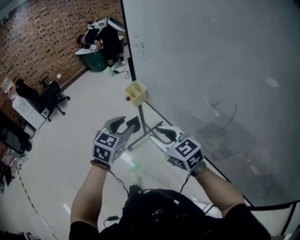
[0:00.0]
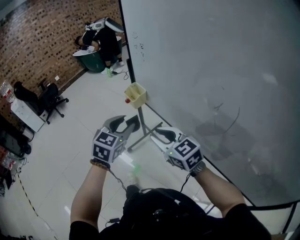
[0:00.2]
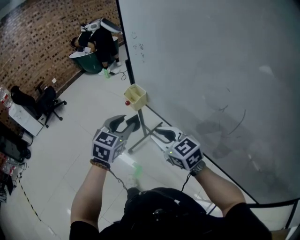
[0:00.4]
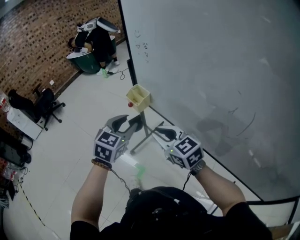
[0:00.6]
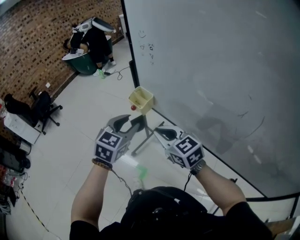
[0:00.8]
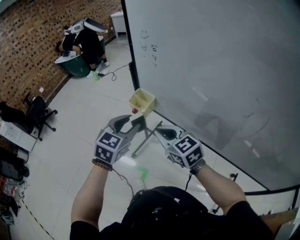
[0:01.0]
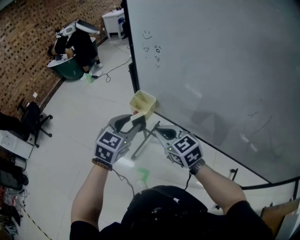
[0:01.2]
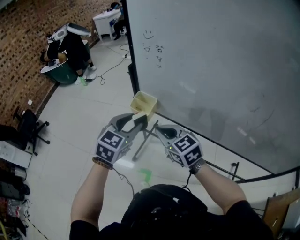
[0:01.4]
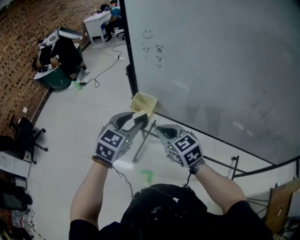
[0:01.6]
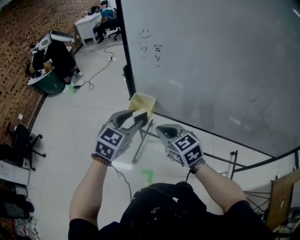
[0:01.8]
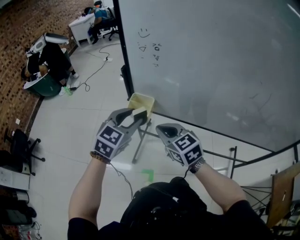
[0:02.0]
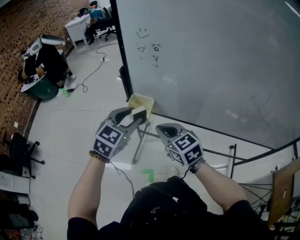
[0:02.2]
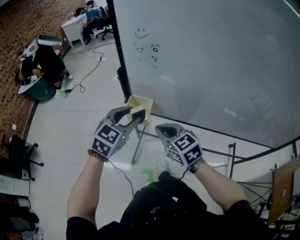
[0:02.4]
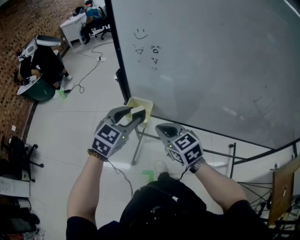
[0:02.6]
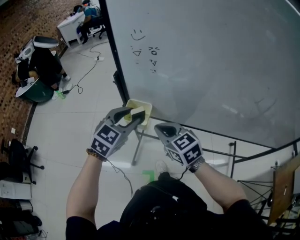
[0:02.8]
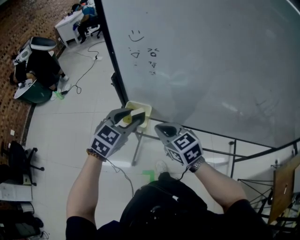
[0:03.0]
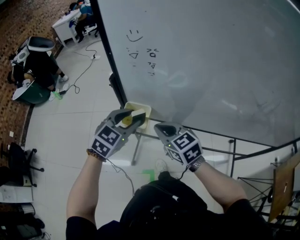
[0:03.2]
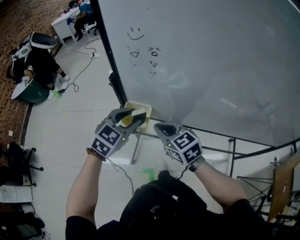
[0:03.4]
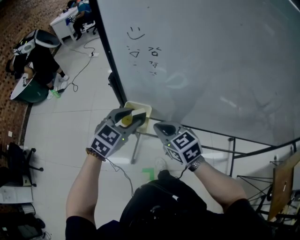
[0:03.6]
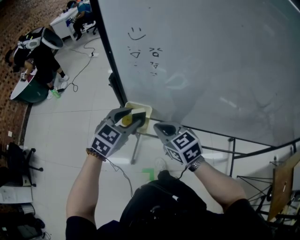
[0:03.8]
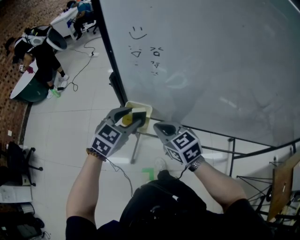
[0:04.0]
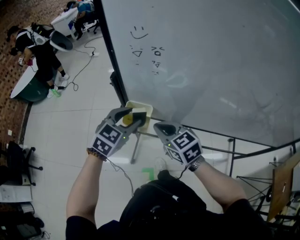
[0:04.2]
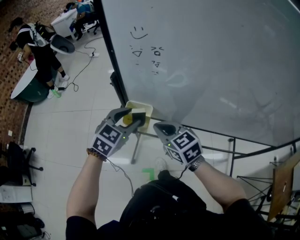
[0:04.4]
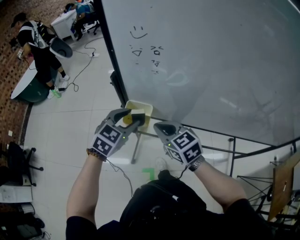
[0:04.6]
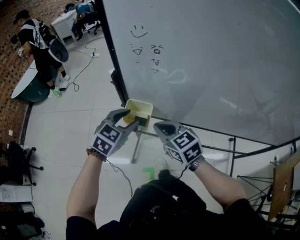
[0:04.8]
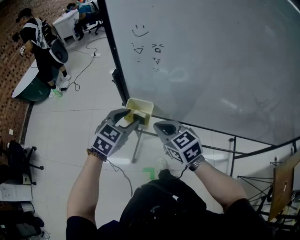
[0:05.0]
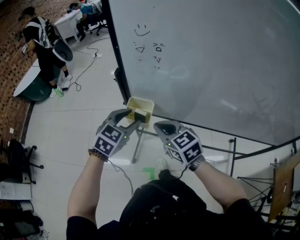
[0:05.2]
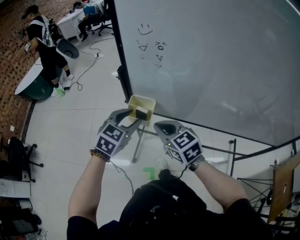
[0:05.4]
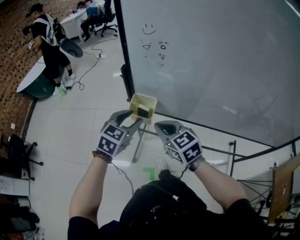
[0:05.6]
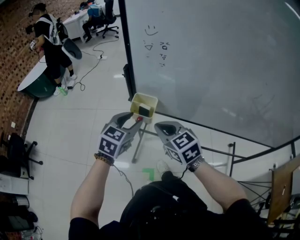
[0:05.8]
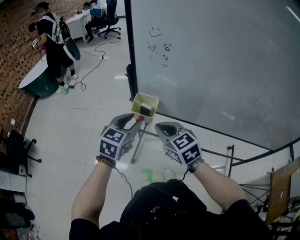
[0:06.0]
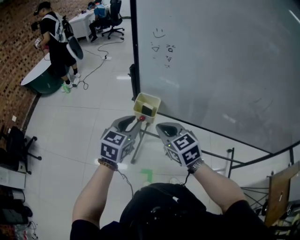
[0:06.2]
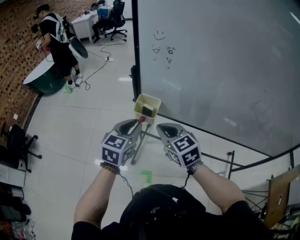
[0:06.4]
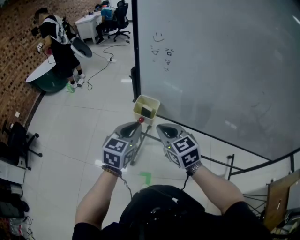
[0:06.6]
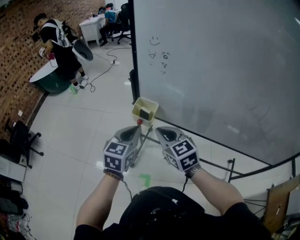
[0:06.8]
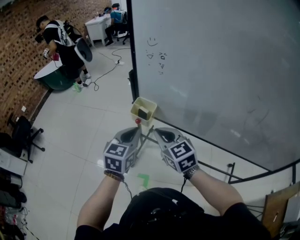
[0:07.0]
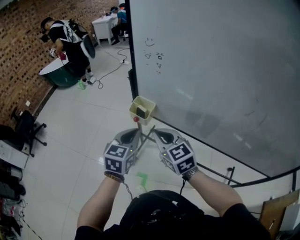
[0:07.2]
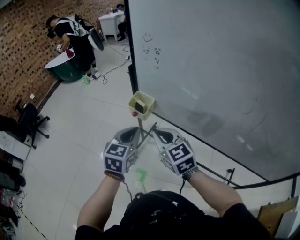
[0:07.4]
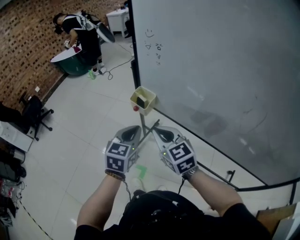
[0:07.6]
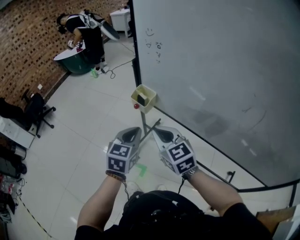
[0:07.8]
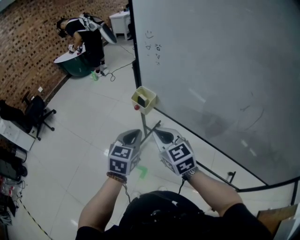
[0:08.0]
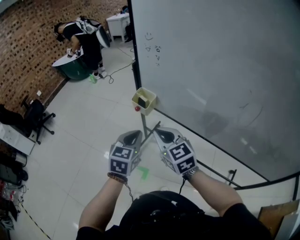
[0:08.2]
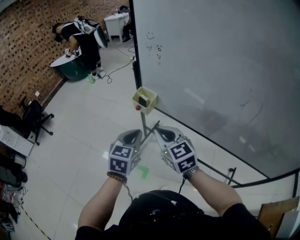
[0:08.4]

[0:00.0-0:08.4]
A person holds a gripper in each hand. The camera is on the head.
0:00.0 to 0:01.4: The left gripper ends up some 20 cm from where it was, and rotates approximately 30 degrees, while the right gripper moves approximately 20 cm, turns by some 30 degrees, and closes its fingers.
0:01.4 to 0:02.8: Both grippers travel together forward, about 10 cm. The left gripper changes its angle by roughly 20 degrees.
0:02.8 to 0:04.2: The left gripper shifts by approximately 5 cm.
0:04.2 to 0:05.6: Both grippers travel together backward, some 5 cm.
0:05.6 to 0:07.0: The right gripper changes place by some 5 cm. The left gripper shifts roughly 10 cm backward, swivels roughly 30 degrees, and closes its fingers.
0:07.0 to 0:08.4: The two grippers go roughly 10 cm backward.

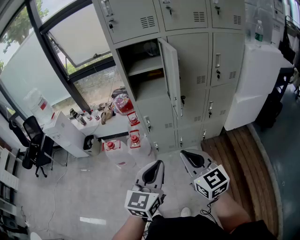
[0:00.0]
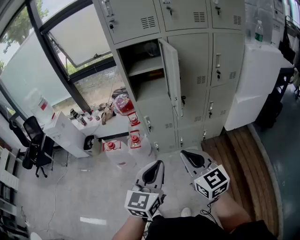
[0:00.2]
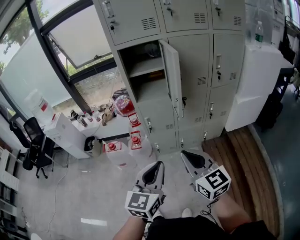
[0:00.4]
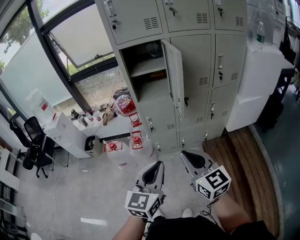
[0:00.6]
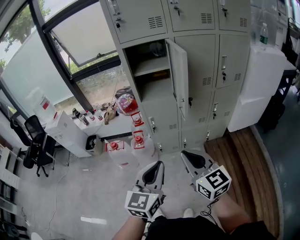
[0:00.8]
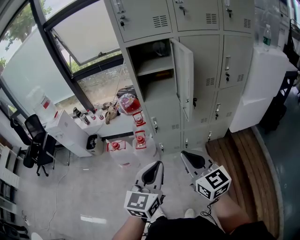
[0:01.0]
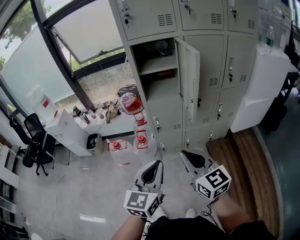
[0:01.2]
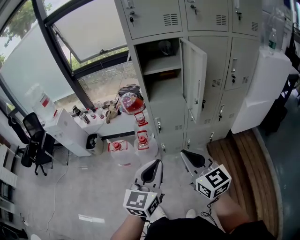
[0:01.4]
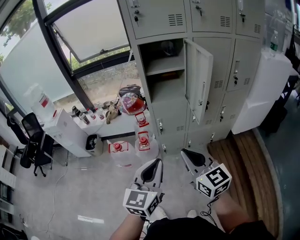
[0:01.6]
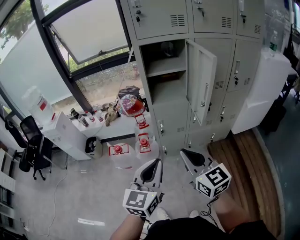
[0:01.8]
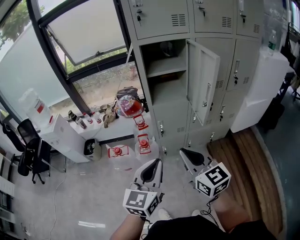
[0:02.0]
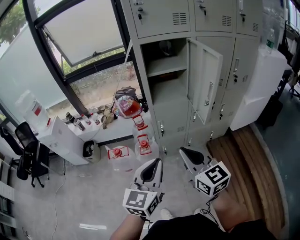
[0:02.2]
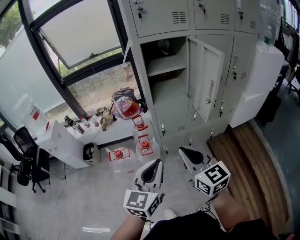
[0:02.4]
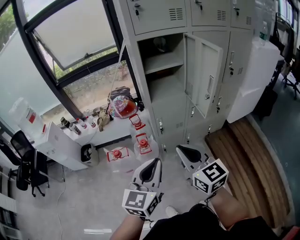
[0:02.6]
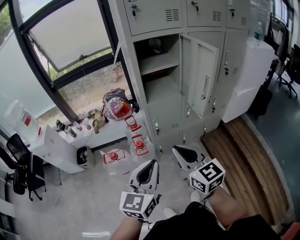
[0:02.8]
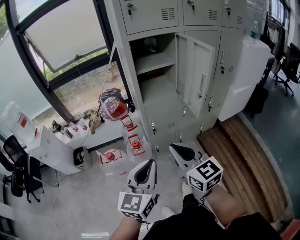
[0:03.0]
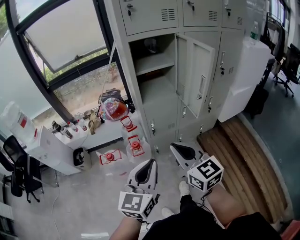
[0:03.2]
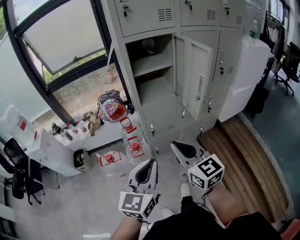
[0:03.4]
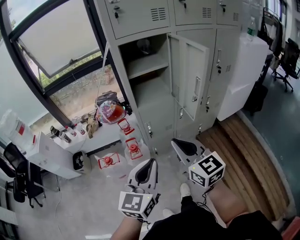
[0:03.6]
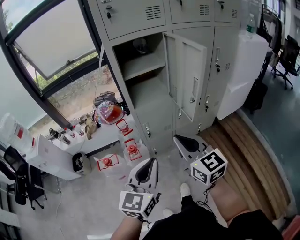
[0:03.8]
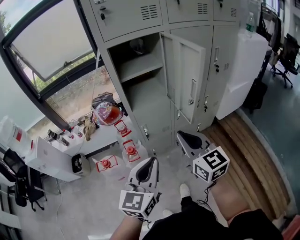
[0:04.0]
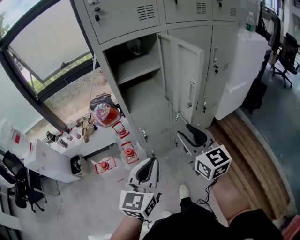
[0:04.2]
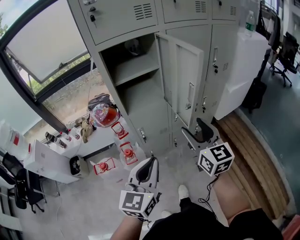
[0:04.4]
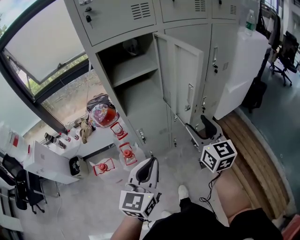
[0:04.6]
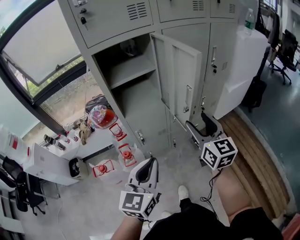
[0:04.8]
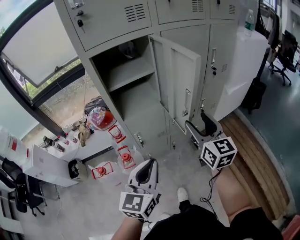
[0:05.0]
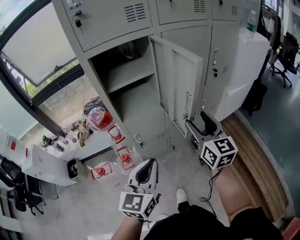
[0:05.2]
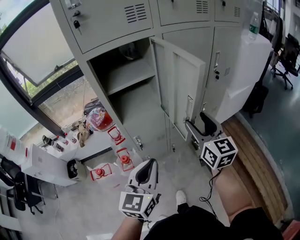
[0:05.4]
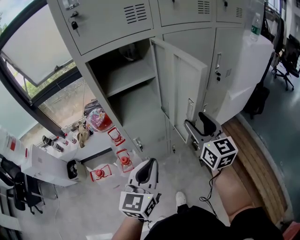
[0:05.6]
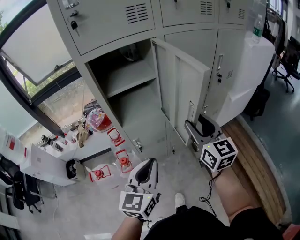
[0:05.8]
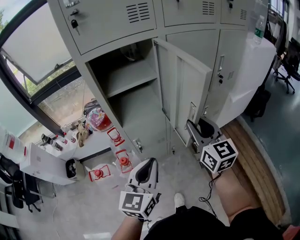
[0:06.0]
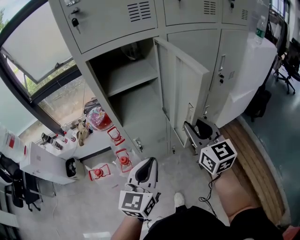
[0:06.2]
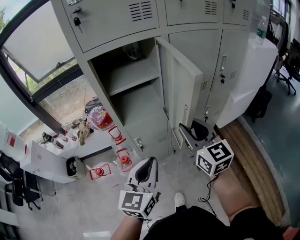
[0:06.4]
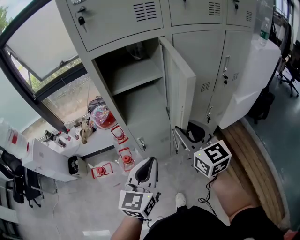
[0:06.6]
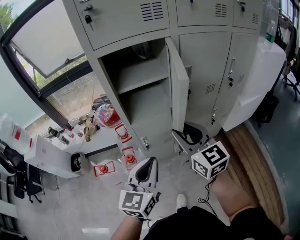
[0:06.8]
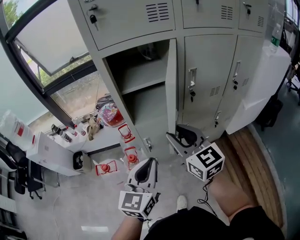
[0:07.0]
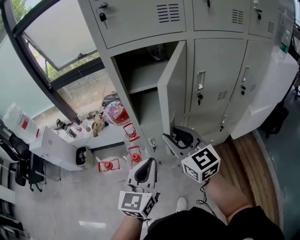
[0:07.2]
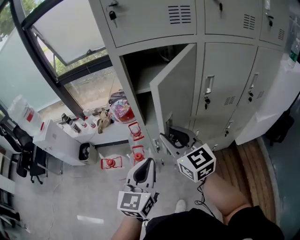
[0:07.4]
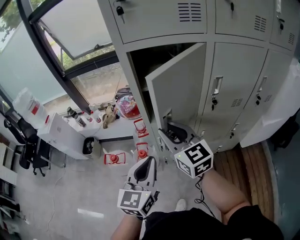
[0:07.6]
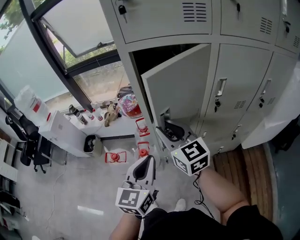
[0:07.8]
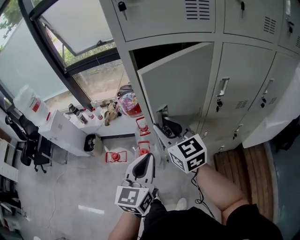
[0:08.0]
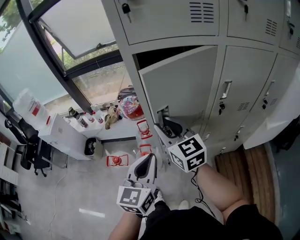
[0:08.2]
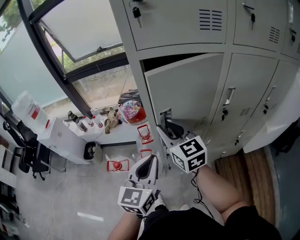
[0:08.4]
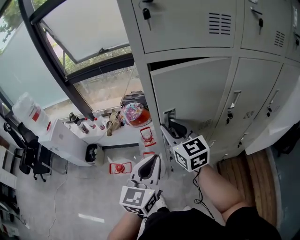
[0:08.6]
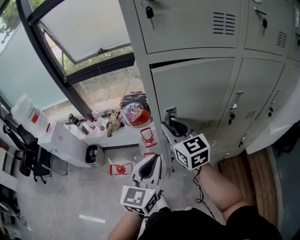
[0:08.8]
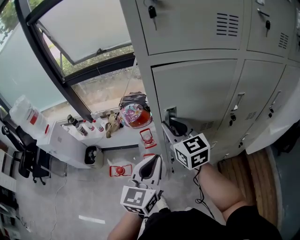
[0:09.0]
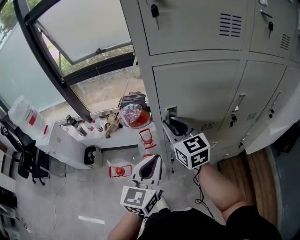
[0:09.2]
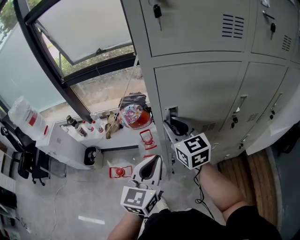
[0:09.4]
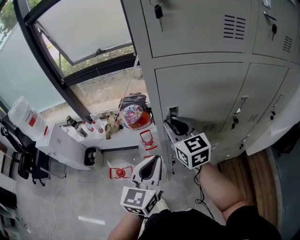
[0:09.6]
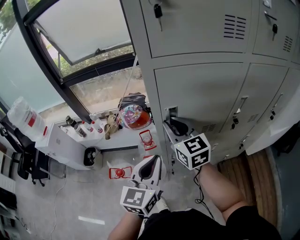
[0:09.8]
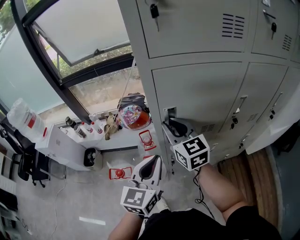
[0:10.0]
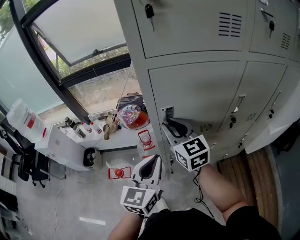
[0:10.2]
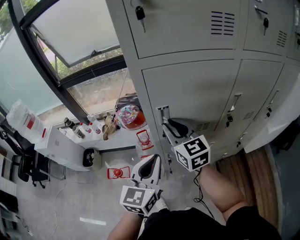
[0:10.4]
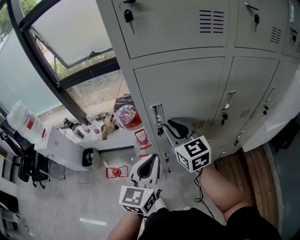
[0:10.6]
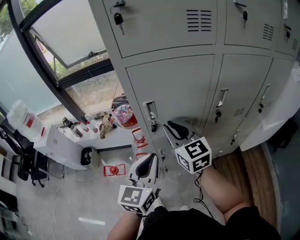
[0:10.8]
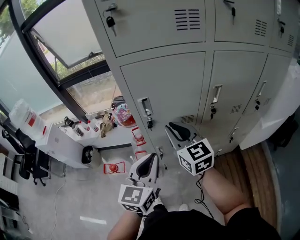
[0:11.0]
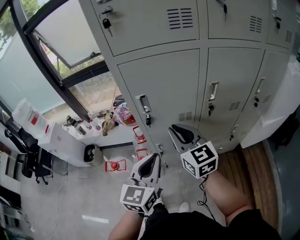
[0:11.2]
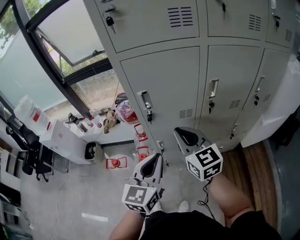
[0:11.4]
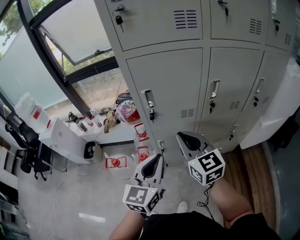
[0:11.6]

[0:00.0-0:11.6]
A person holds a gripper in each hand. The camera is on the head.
0:00.0 to 0:01.4: Both grippers travel together to the left, roughly 10 cm.
0:01.4 to 0:02.8: Both grippers move to the left and forward, roughly 15 cm.
0:02.8 to 0:04.4: The right gripper goes about 20 cm to the right and forward, turns by some 20 degrees, and opens up; the left gripper moves forward and to the right, about 15 cm.
0:04.4 to 0:05.8: Both grippers travel together forward, some 10 cm.
0:05.8 to 0:07.2: The right gripper moves to the left, some 15 cm, and rotates about 30 degrees.
0:07.2 to 0:08.8: The grippers both shift forward and to the left by some 15 cm.
0:08.8 to 0:10.2: The grippers make only small movements.
0:10.2 to 0:11.6: Both grippers travel together backward and to the right, roughly 15 cm.

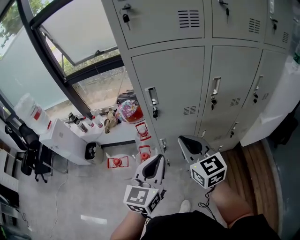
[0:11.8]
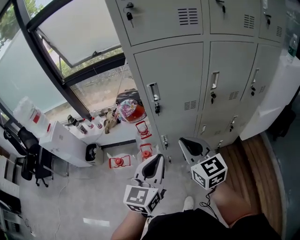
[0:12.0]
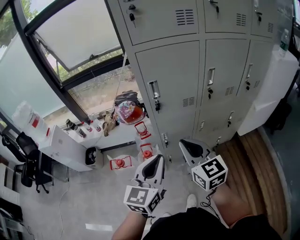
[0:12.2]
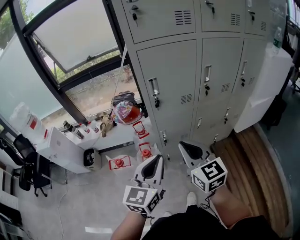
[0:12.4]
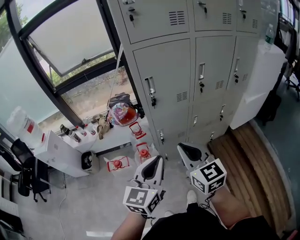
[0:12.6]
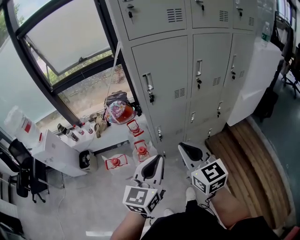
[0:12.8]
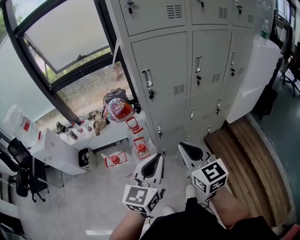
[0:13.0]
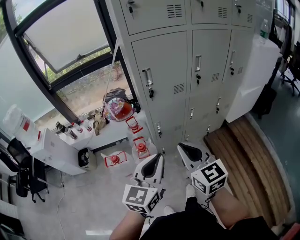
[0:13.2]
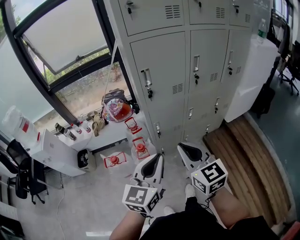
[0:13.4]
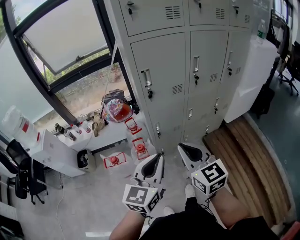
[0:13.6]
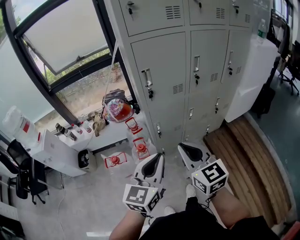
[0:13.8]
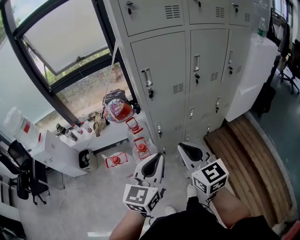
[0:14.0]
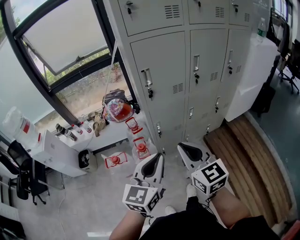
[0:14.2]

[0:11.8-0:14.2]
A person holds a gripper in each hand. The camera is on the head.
0:11.8 to 0:13.0: The left gripper heads backward and to the left, covering some 15 cm. The right gripper goes roughly 15 cm backward.
0:13.0 to 0:14.2: The grippers move only a little.

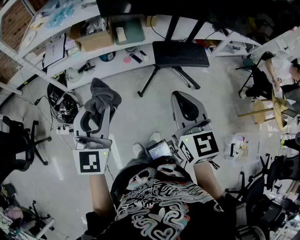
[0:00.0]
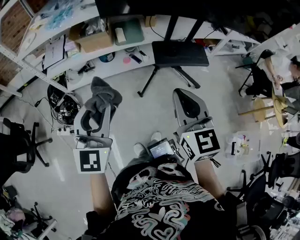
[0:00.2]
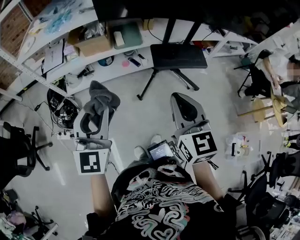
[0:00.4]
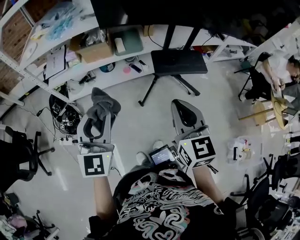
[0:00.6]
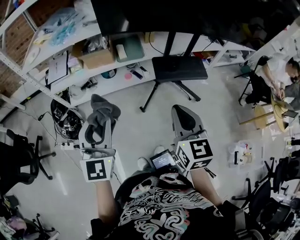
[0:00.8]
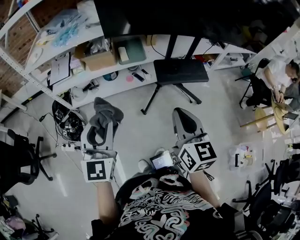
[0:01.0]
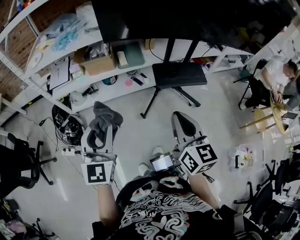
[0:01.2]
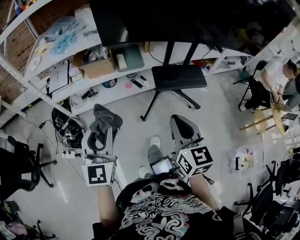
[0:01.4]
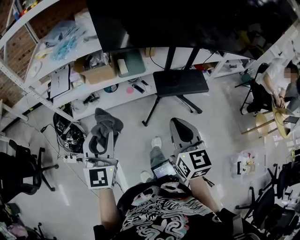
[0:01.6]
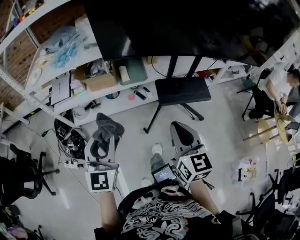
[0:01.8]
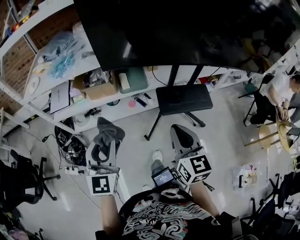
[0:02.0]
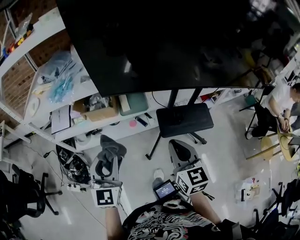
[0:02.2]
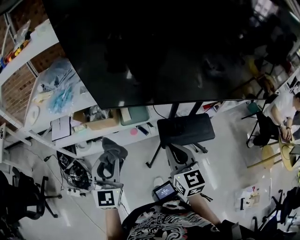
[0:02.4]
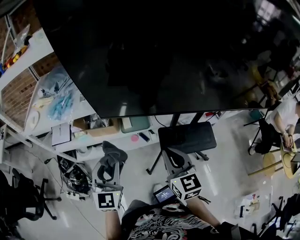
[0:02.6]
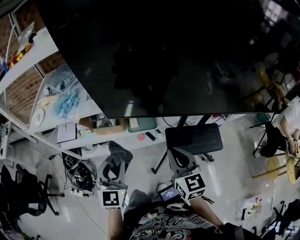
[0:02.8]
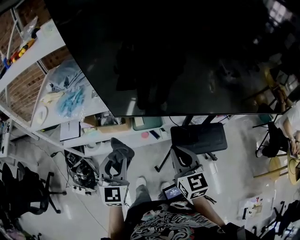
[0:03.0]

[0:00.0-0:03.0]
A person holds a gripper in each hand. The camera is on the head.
0:00.0 to 0:01.6: The left gripper changes place by approximately 5 cm.
0:01.6 to 0:03.0: The grippers both shift forward by some 30 cm.
